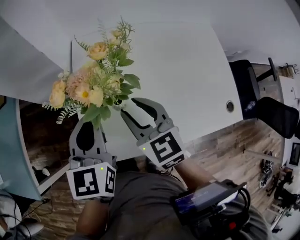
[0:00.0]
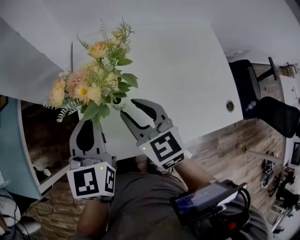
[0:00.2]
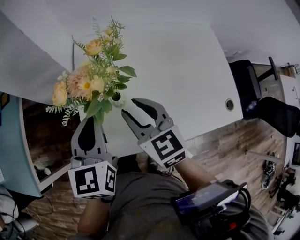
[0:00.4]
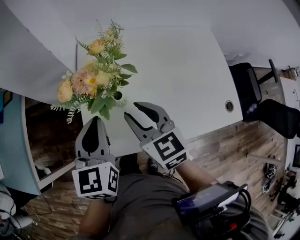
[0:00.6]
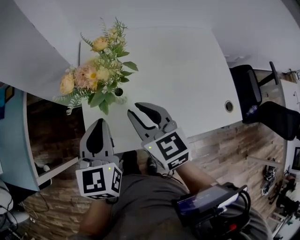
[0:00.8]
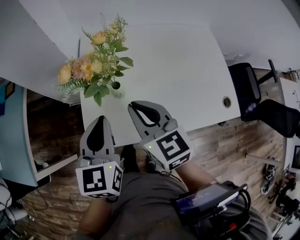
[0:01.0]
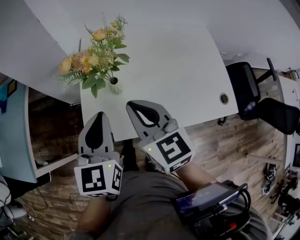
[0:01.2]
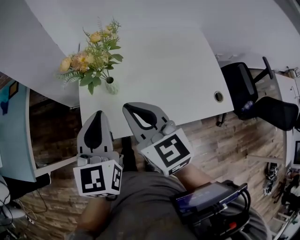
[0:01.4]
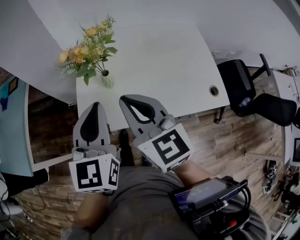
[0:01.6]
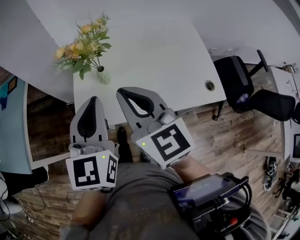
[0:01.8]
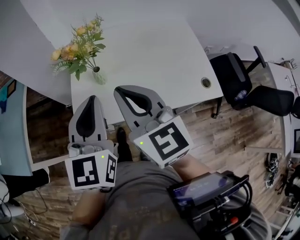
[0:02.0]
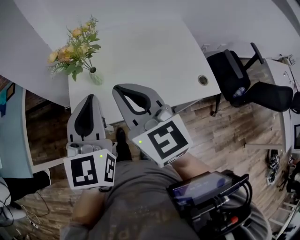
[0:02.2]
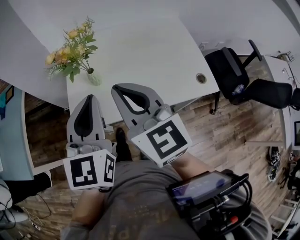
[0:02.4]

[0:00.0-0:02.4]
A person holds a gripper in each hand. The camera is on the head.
0:00.0 to 0:01.2: The right gripper travels backward and upward by about 10 cm, and closes up, while the left gripper moves backward, about 10 cm.
0:01.2 to 0:02.4: The left gripper moves backward, upward and to the right, about 10 cm. Meanwhile the right gripper travels backward and upward by roughly 10 cm.

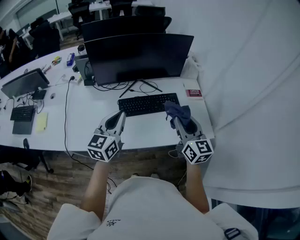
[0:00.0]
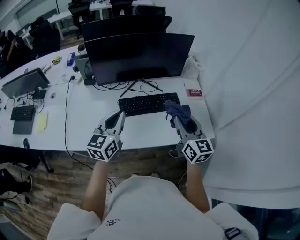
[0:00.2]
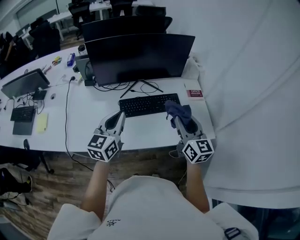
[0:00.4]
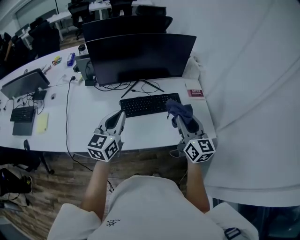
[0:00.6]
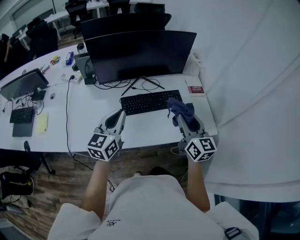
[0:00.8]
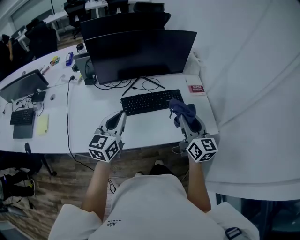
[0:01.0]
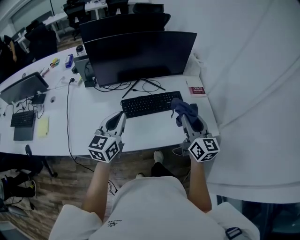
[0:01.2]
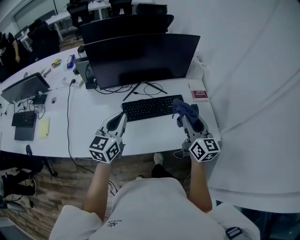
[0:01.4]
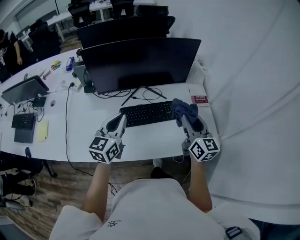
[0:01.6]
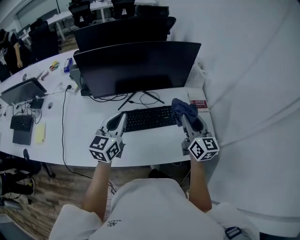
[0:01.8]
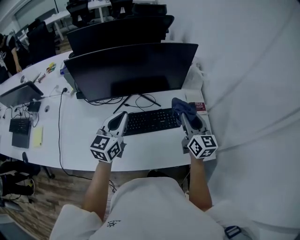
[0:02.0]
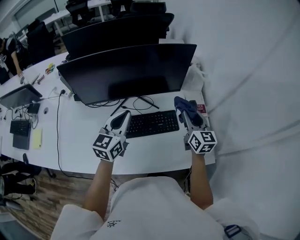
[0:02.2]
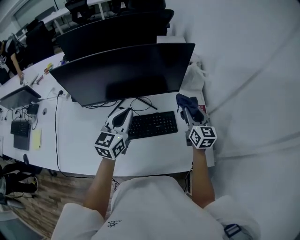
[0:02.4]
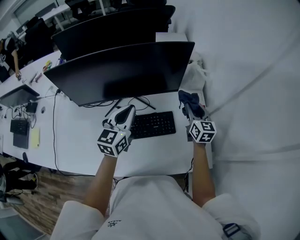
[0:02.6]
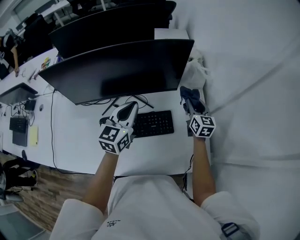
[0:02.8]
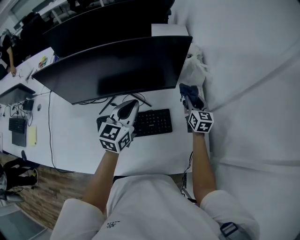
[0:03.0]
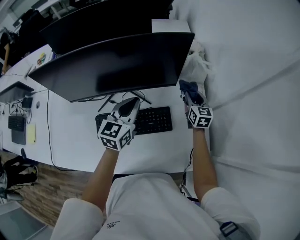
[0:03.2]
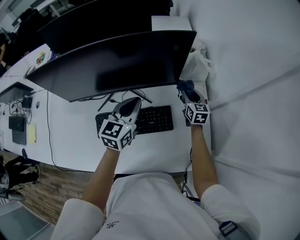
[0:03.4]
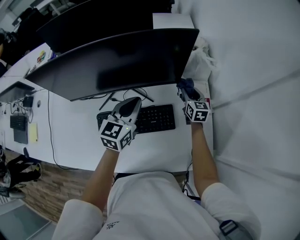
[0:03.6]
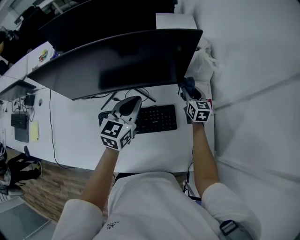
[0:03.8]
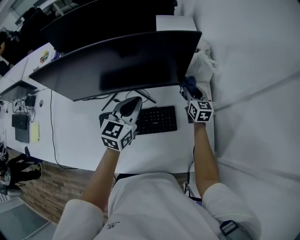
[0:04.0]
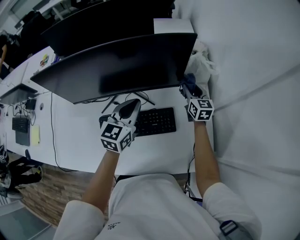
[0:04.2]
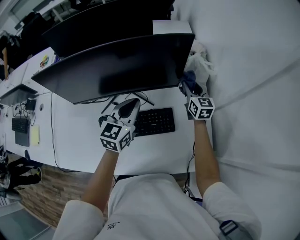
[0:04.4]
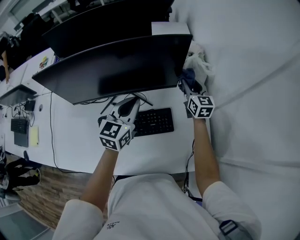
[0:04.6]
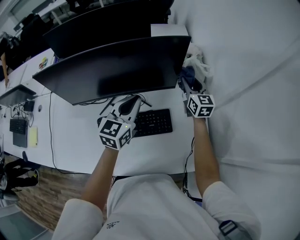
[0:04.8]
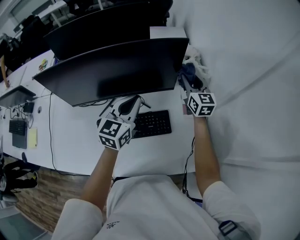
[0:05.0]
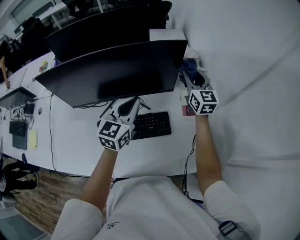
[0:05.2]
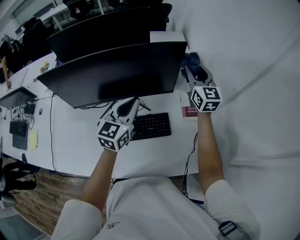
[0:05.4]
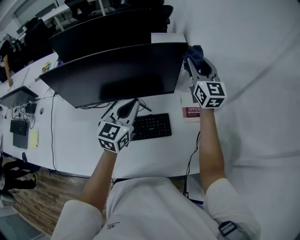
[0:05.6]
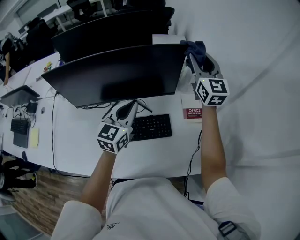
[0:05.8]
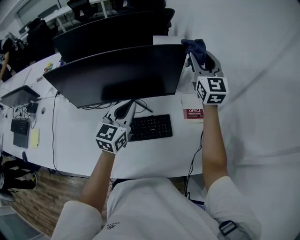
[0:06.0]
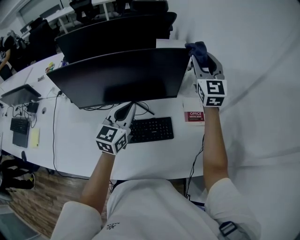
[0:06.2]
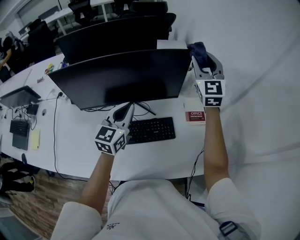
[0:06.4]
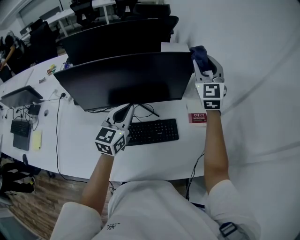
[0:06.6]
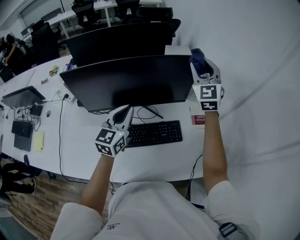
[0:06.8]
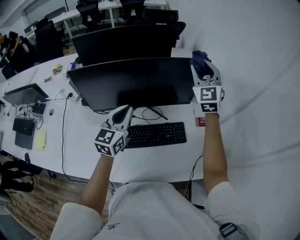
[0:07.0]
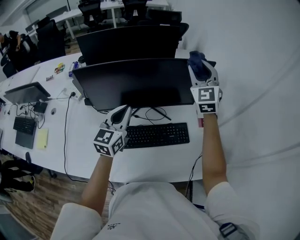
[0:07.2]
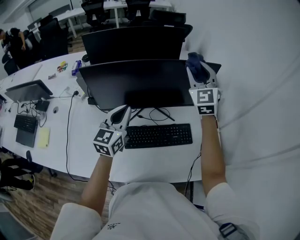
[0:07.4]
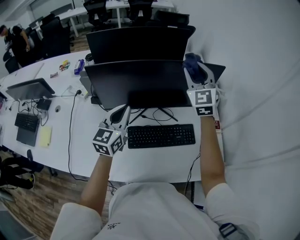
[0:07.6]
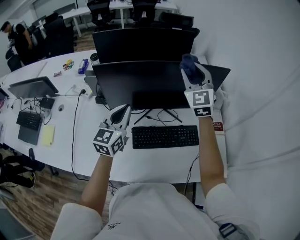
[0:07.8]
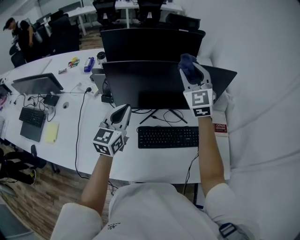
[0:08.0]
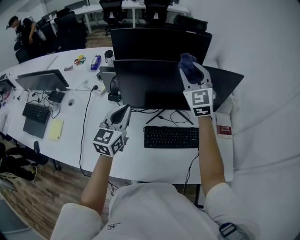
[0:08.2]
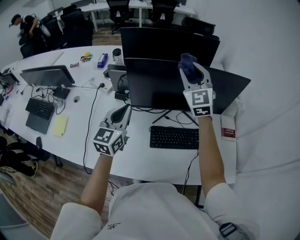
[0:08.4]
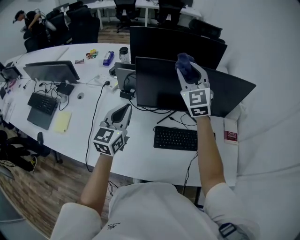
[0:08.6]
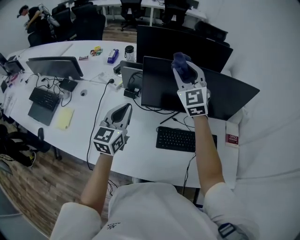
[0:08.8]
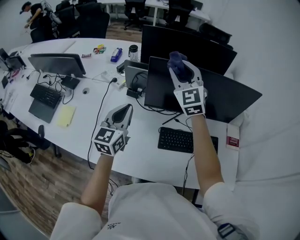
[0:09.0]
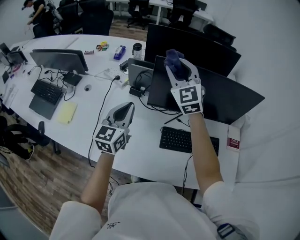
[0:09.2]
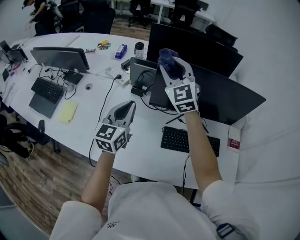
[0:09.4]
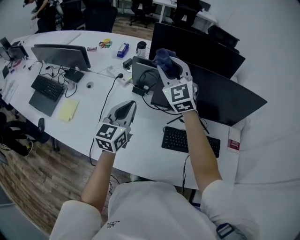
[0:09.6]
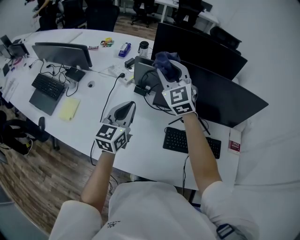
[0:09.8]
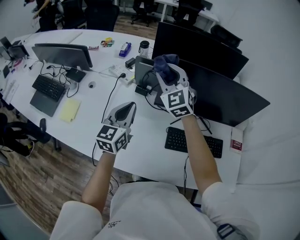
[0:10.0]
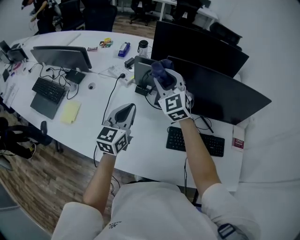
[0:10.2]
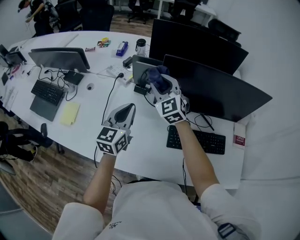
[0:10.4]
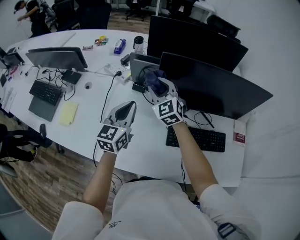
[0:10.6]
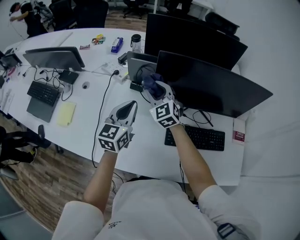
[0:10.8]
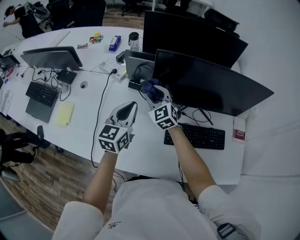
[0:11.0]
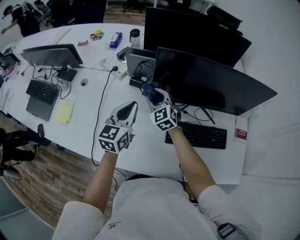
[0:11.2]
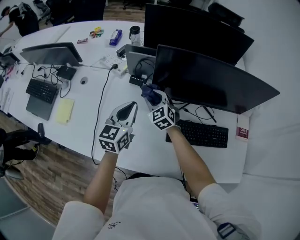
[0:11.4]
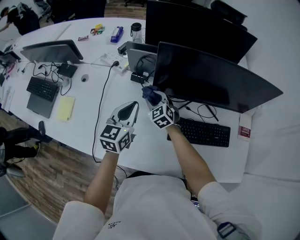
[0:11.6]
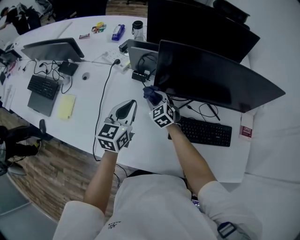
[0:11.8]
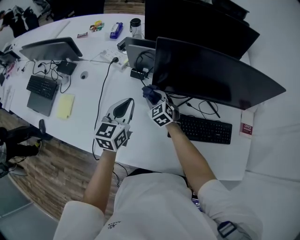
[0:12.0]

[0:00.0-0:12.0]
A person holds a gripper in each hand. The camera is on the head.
0:00.0 to 0:01.6: The two grippers go some 10 cm forward.
0:01.6 to 0:03.0: The right gripper goes approximately 35 cm forward, downward and to the right. Meanwhile the left gripper heads forward and to the right, covering about 30 cm.
0:03.0 to 0:04.4: The right gripper shifts approximately 5 cm forward, and goes downward and returns, about 5 cm each way.
0:04.4 to 0:06.0: The right gripper moves upward, roughly 25 cm, and swivels roughly 30 degrees. The left gripper heads upward, covering approximately 5 cm.
0:06.0 to 0:07.6: Both grippers travel together to the left, about 20 cm.
0:07.6 to 0:09.0: The grippers both shift to the left by about 25 cm.
0:09.0 to 0:10.4: The left gripper ends up roughly 5 cm from where it was; the right gripper moves downward and to the left, roughly 15 cm.
0:10.4 to 0:12.0: The right gripper heads downward, covering about 25 cm, and swivels roughly 20 degrees; the left gripper goes some 5 cm downward.

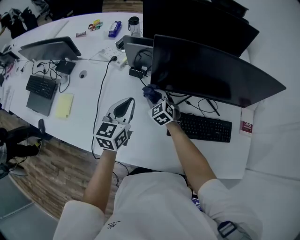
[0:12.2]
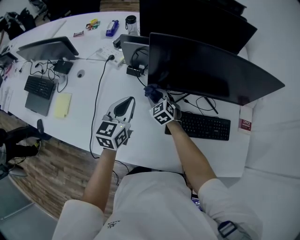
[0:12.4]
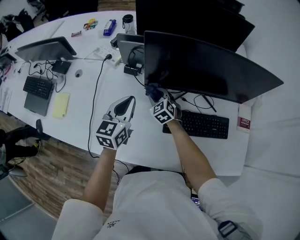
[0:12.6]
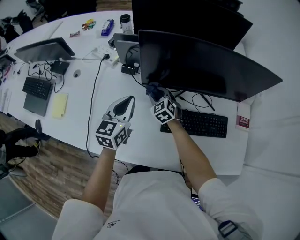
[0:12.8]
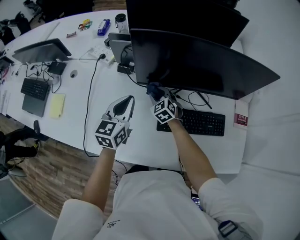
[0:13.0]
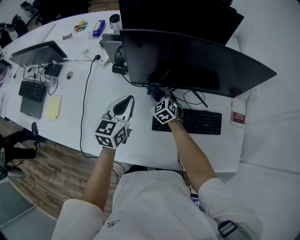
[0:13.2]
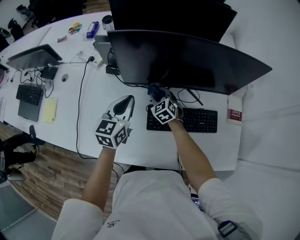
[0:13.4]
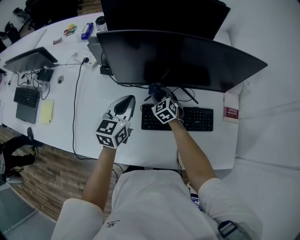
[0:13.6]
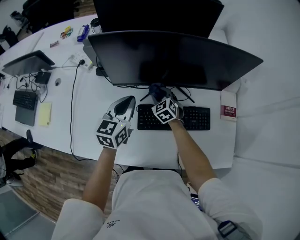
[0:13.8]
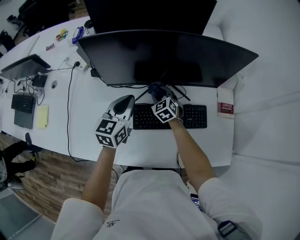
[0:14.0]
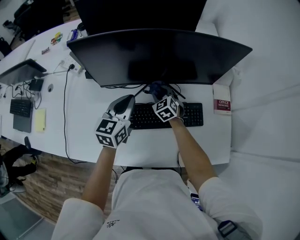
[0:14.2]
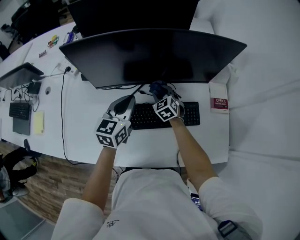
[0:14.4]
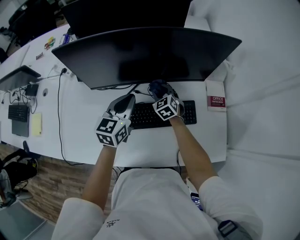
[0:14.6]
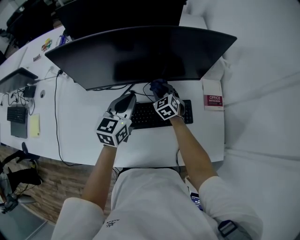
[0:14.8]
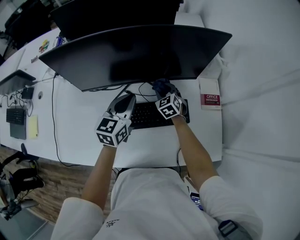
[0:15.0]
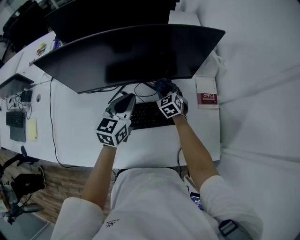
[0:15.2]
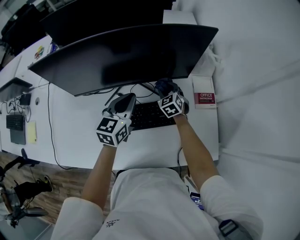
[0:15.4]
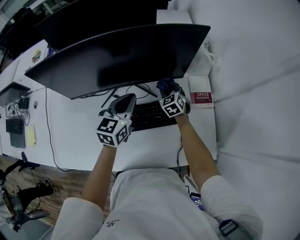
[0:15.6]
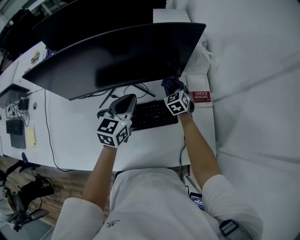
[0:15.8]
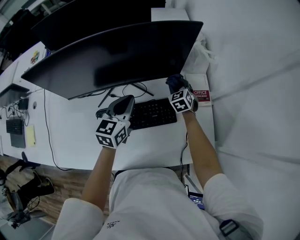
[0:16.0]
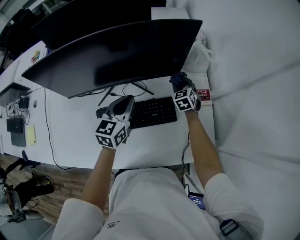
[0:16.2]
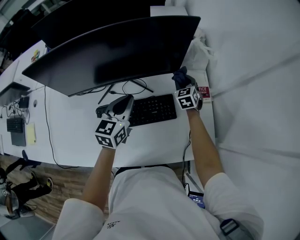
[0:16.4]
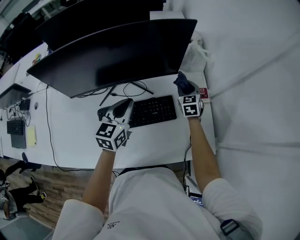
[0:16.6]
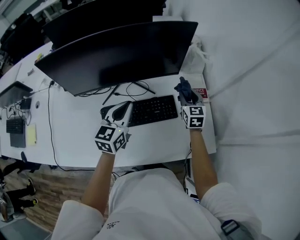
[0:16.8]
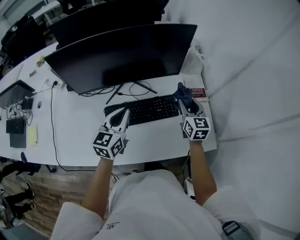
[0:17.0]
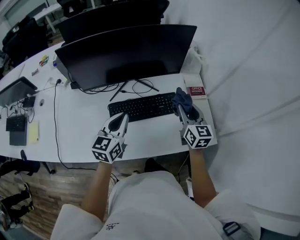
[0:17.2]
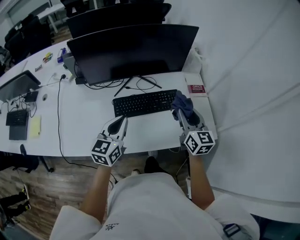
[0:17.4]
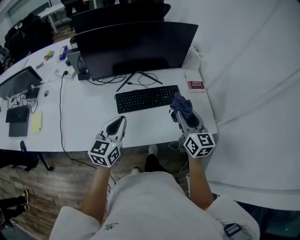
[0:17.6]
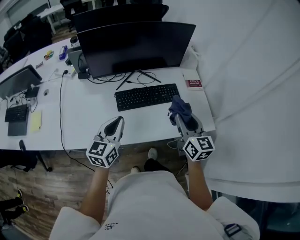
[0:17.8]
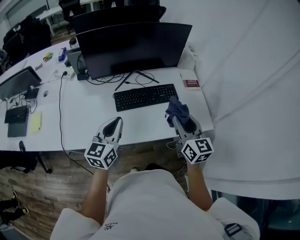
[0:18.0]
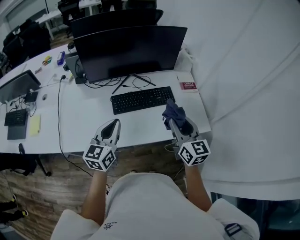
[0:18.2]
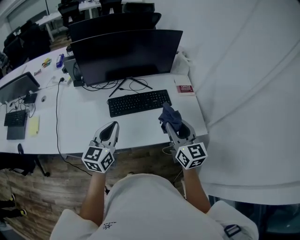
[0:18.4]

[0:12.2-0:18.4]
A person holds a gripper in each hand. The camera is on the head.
0:12.2 to 0:13.8: The two grippers go some 20 cm to the right.
0:13.8 to 0:15.4: Both grippers move to the right, roughly 25 cm.
0:15.4 to 0:16.8: The left gripper is displaced backward by about 5 cm. Meanwhile the right gripper goes some 20 cm to the right and upward, and changes its angle by about 30 degrees.
0:16.8 to 0:18.4: The left gripper moves backward, some 25 cm. The right gripper is displaced backward and upward by about 40 cm, and turns by about 20 degrees.

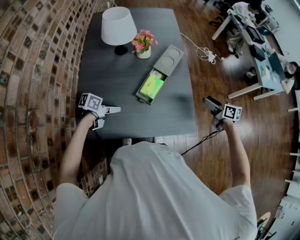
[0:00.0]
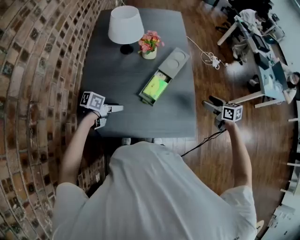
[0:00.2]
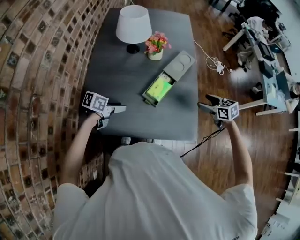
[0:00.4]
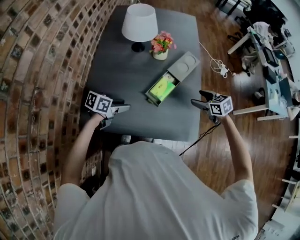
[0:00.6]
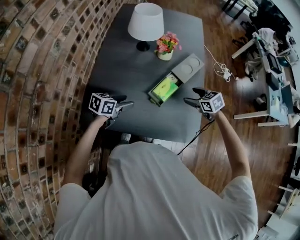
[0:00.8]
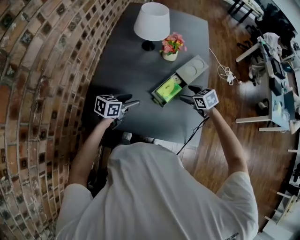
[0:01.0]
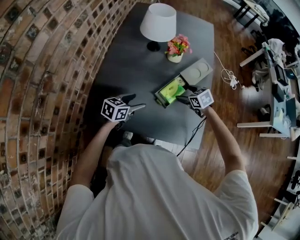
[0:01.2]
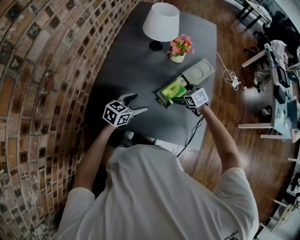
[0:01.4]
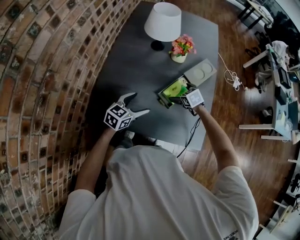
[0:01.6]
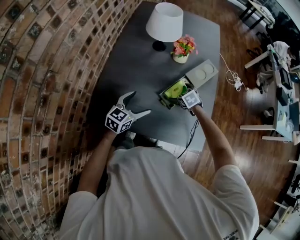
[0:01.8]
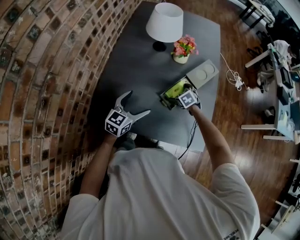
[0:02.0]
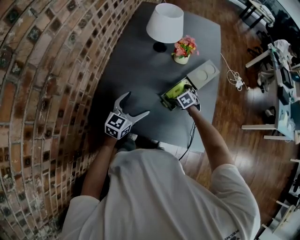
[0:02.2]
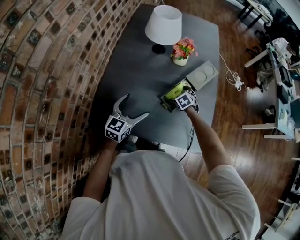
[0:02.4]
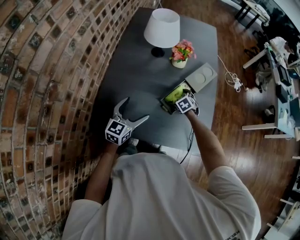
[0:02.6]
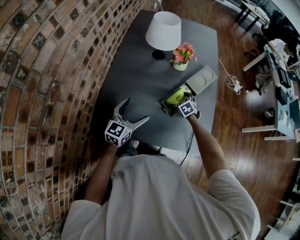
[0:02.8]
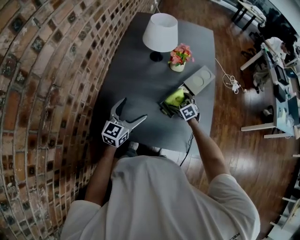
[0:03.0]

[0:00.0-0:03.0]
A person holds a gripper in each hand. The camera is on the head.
0:00.0 to 0:01.6: The right gripper changes place by roughly 30 cm, twists roughly 50 degrees counterclockwise, seen from behind, and opens its fingers, while the left gripper rotates approximately 50 degrees, and opens its fingers.
0:01.6 to 0:03.0: The left gripper heads upward and to the left, covering roughly 10 cm, and turns by about 20 degrees.
